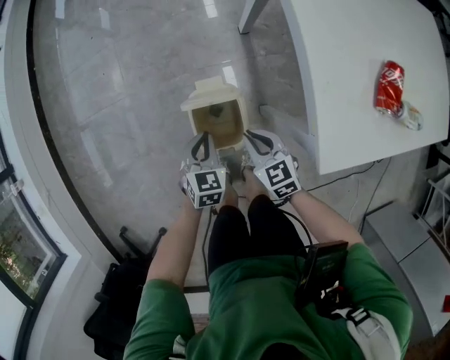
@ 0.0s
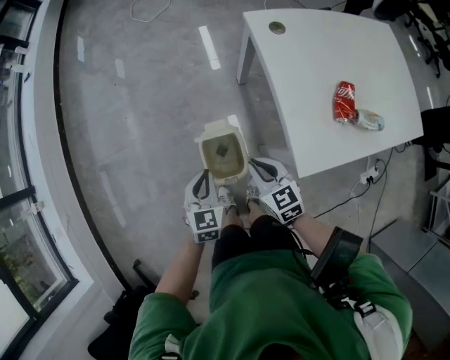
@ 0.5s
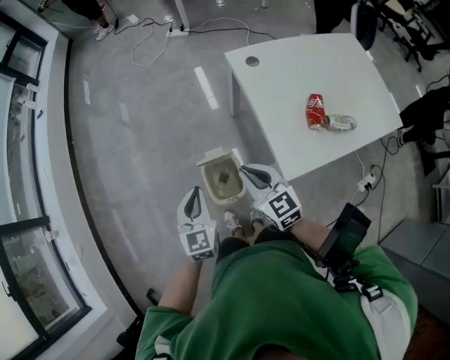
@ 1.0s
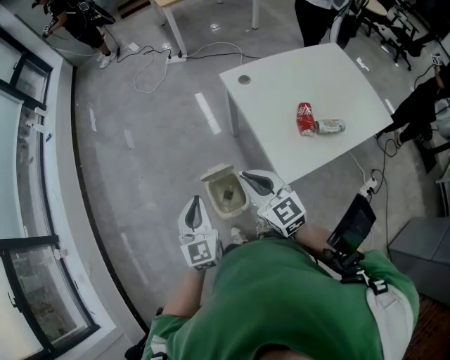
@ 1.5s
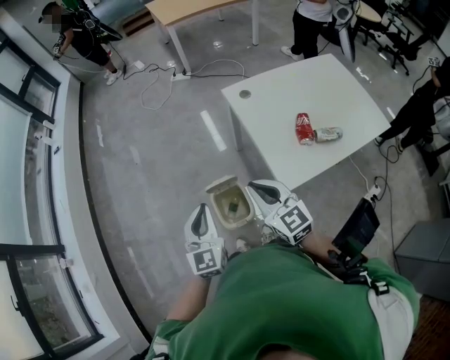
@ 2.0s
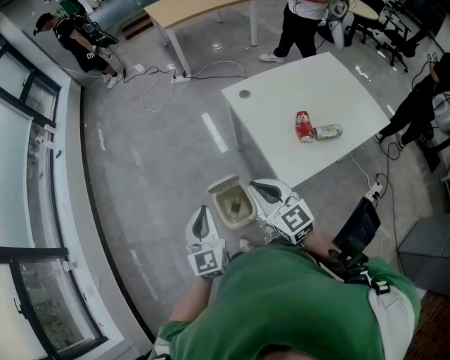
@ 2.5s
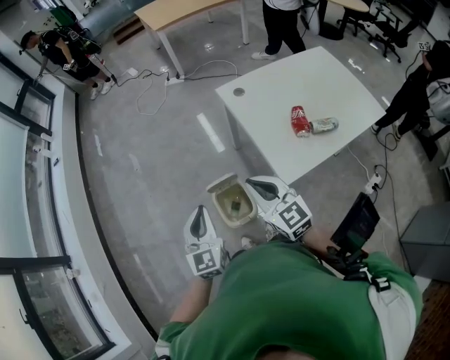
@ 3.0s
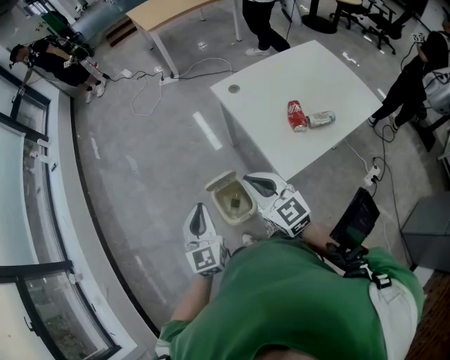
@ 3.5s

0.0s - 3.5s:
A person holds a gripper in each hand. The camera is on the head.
0.0s - 2.0s: Both grippers travel together upward, some 40 cm. The right gripper turns by approximately 30 degrees. The left gripper points its fingers some 40 degrees further upward.
2.0s - 3.5s: The grippers make only small movements.

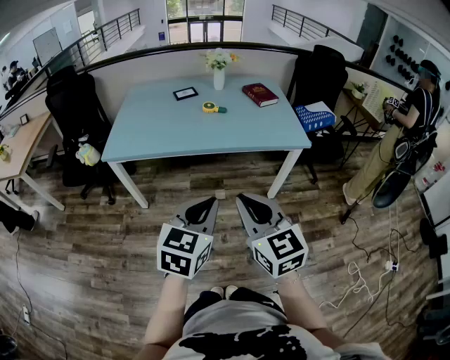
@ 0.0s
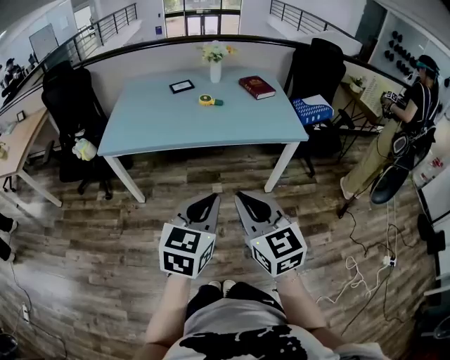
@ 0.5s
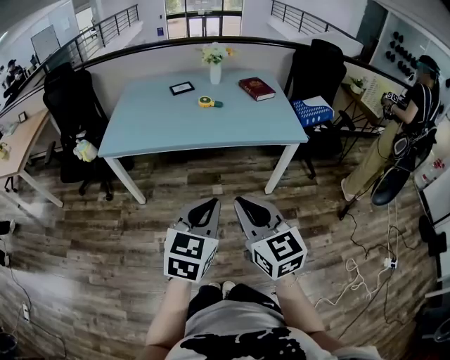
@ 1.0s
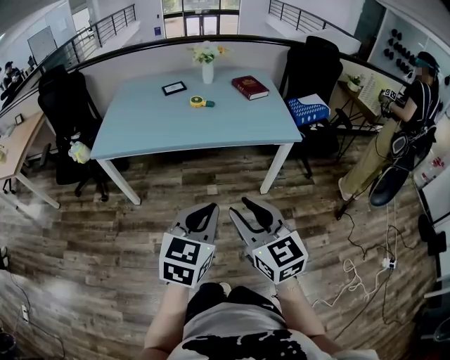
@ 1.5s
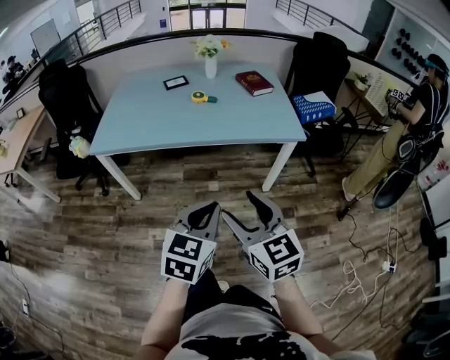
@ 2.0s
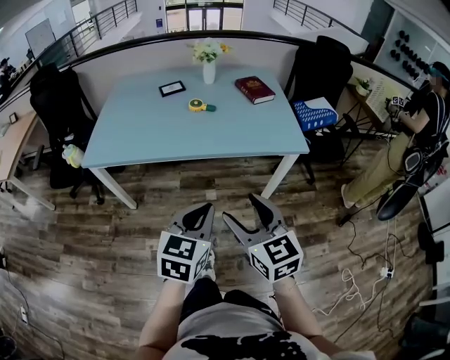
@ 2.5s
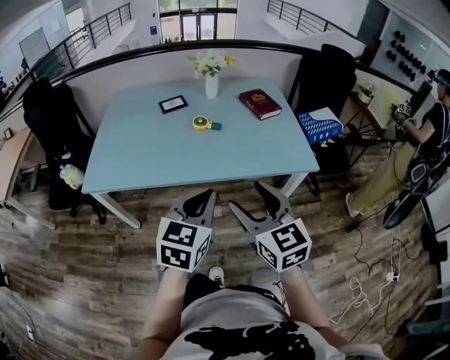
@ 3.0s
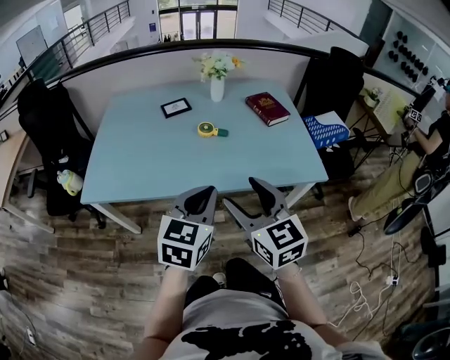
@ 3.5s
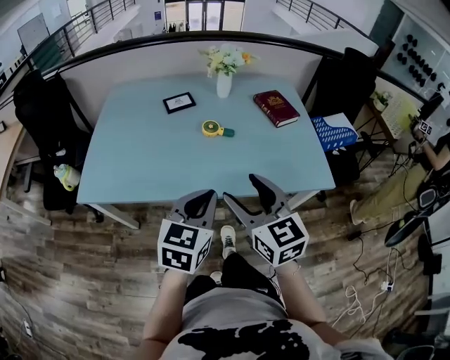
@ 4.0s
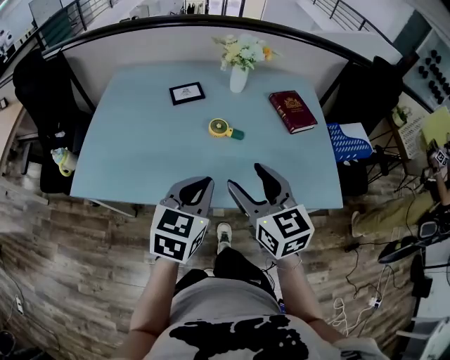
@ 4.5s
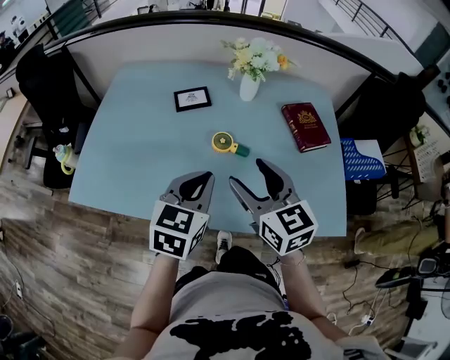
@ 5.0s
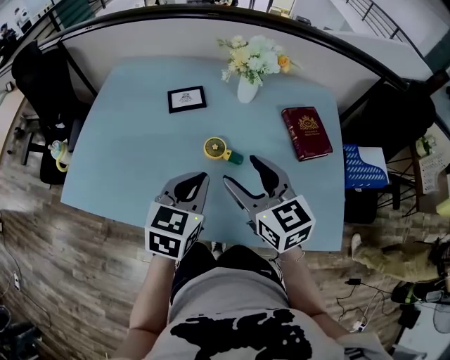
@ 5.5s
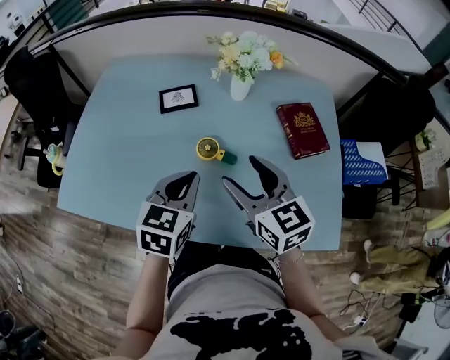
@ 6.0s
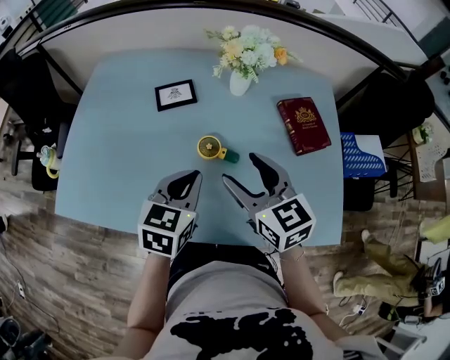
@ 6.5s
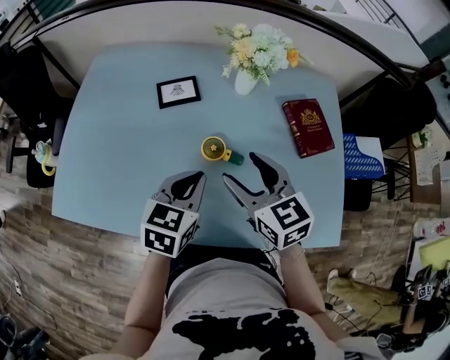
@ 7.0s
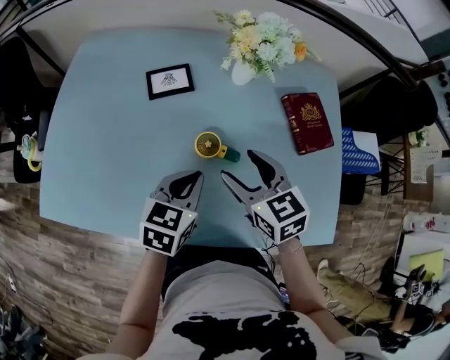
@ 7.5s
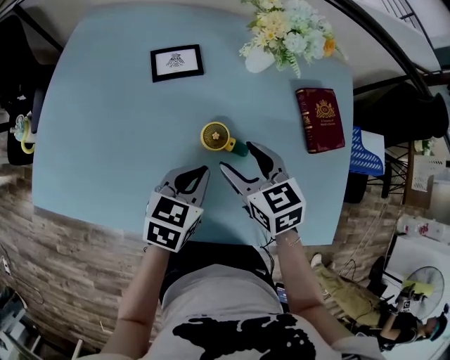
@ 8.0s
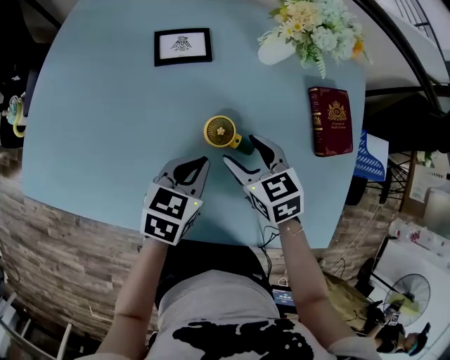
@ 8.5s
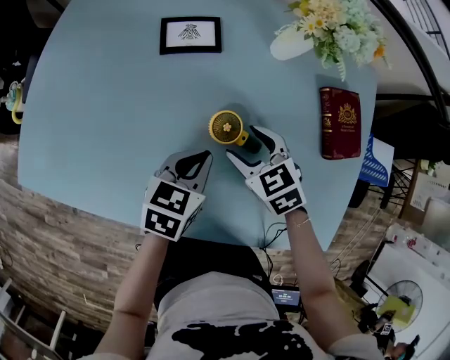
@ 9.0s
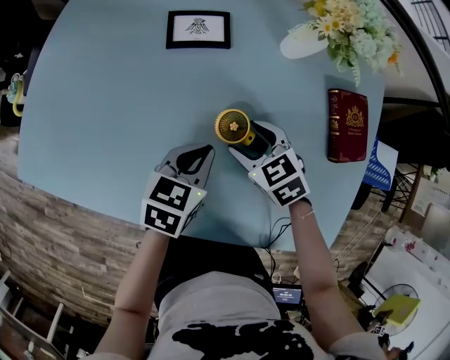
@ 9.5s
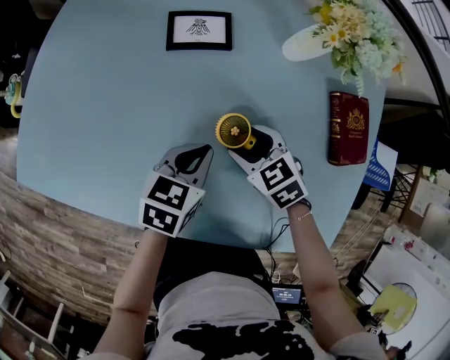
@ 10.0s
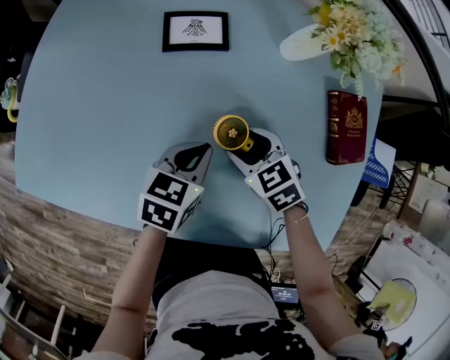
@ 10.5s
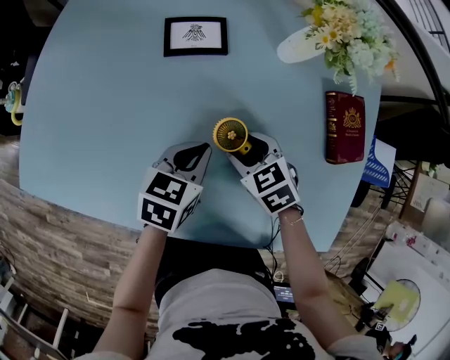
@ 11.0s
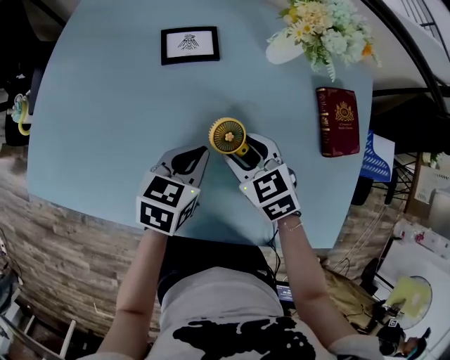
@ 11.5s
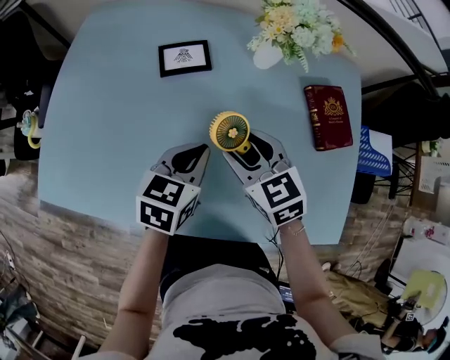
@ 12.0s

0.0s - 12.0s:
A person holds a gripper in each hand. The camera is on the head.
0.0s - 2.0s: The grippers both shift to the right by some 5 cm. The right gripper opens up.
2.0s - 4.0s: Both grippers travel together forward, some 35 cm.
4.0s - 6.0s: The grippers both shift forward by about 25 cm.
6.0s - 8.0s: The left gripper heads downward, covering approximately 10 cm. Meanwhile the right gripper is displaced downward and forward by approximately 15 cm, and changes its angle by approximately 20 degrees.
8.0s - 10.0s: The right gripper is displaced downward by some 10 cm, and rotates about 30 degrees; the left gripper shifts about 5 cm downward.
10.0s - 12.0s: The left gripper is displaced upward by roughly 10 cm. The right gripper heads upward, covering approximately 15 cm, and rotates some 30 degrees.

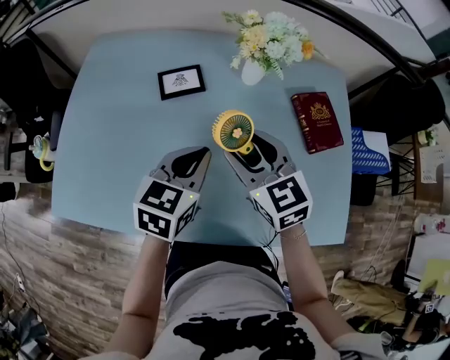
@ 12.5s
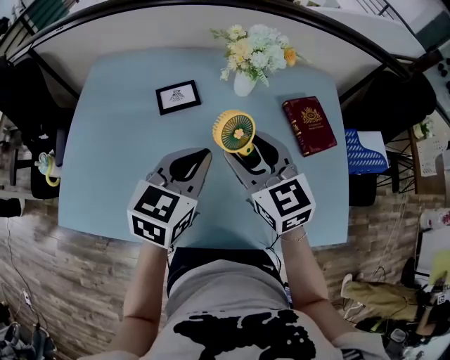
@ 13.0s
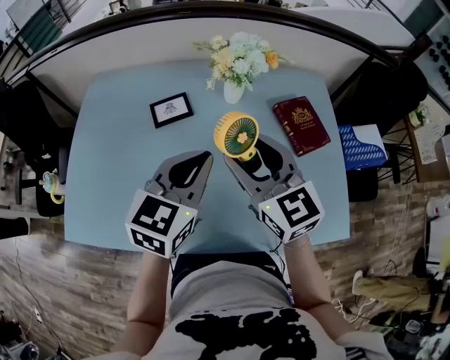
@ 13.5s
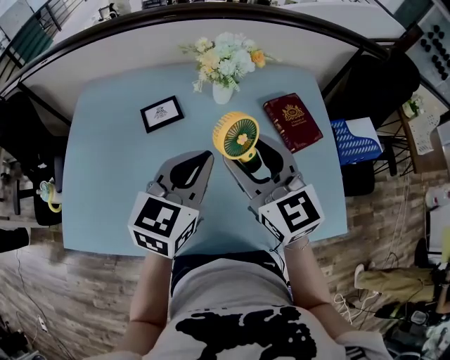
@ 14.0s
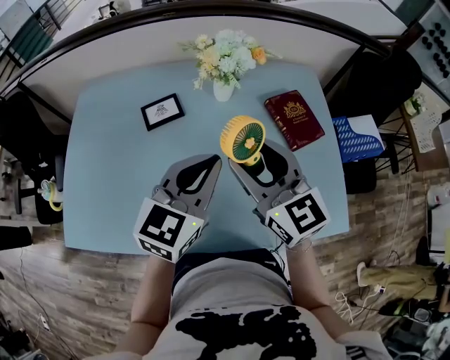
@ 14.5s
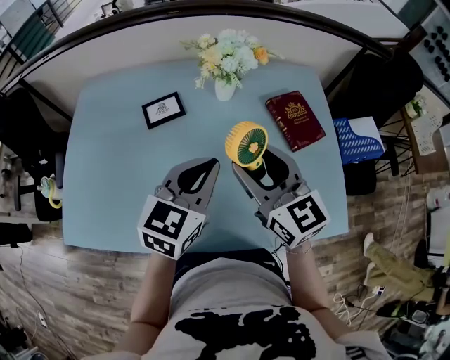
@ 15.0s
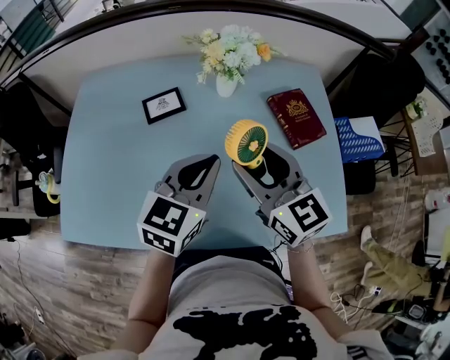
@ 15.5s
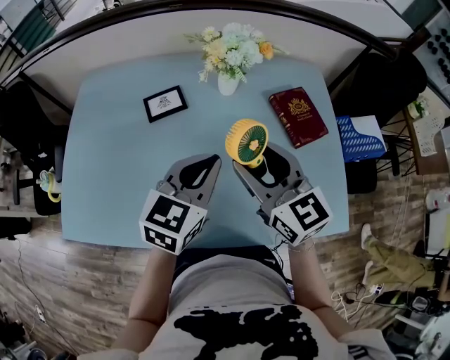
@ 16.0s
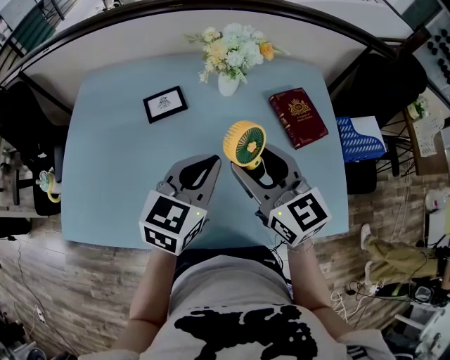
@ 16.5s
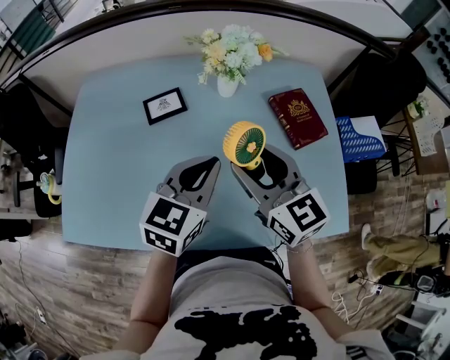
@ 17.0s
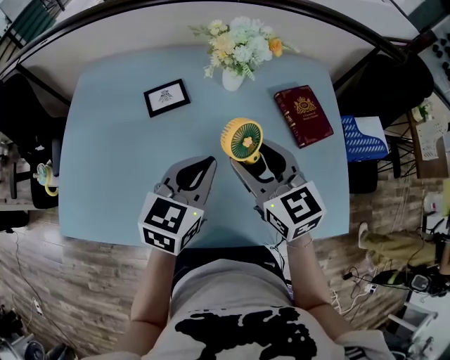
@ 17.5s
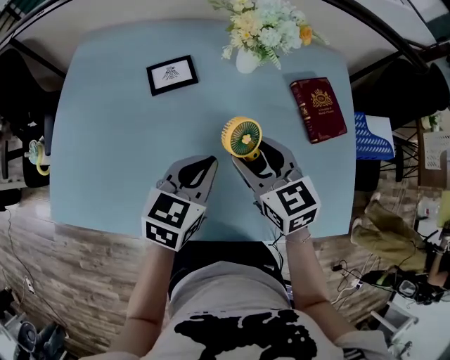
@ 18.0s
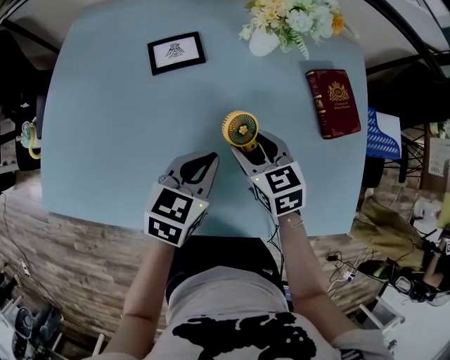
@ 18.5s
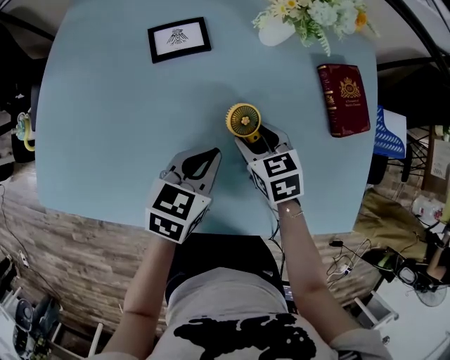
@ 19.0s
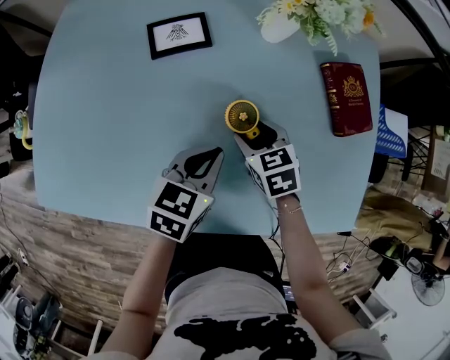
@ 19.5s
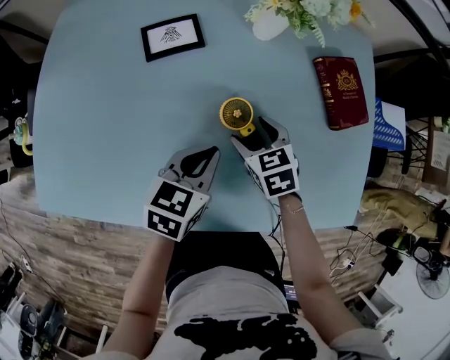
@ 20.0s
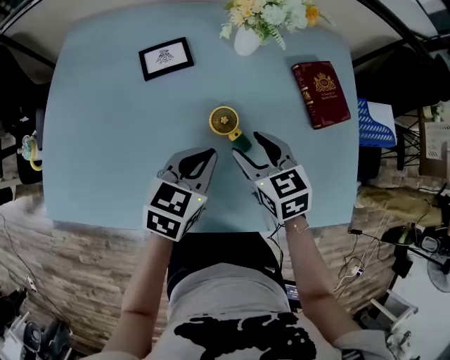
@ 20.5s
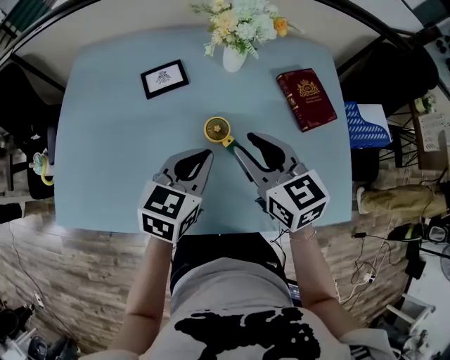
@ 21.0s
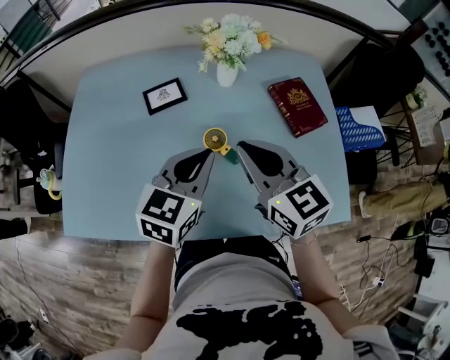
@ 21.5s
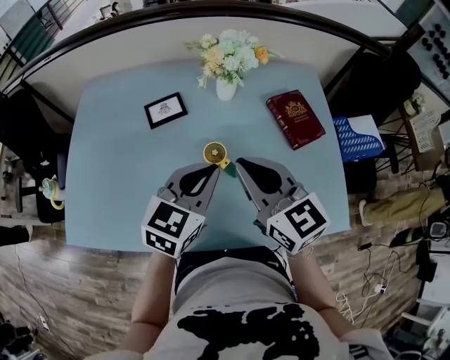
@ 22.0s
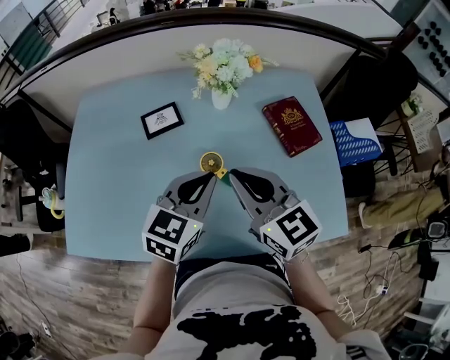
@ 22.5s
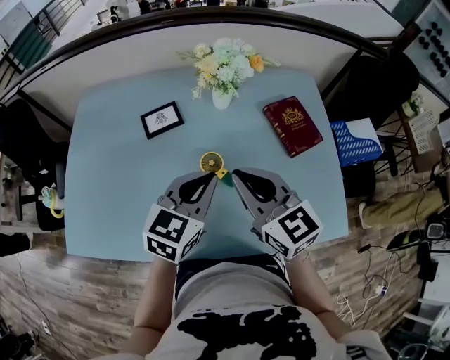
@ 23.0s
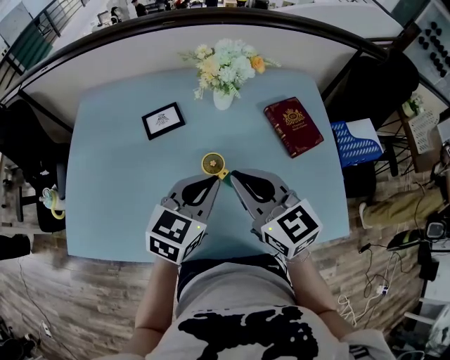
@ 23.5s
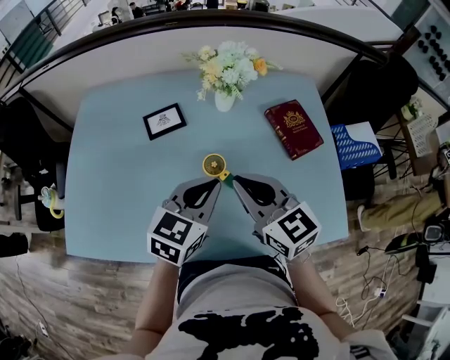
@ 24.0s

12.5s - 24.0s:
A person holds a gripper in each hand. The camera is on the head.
12.5s - 14.5s: The grippers both shift upward and to the right by about 10 cm. The right gripper turns by roughly 20 degrees. The left gripper changes its angle by some 20 degrees.
14.5s - 16.5s: The grippers stay close to where they were, moving slightly.
16.5s - 18.5s: The grippers both shift downward by approximately 20 cm. The left gripper turns by approximately 20 degrees. Meanwhile the right gripper angles its fingers downward, by approximately 30 degrees.
18.5s - 20.0s: The right gripper moves downward, approximately 5 cm.
20.0s - 22.0s: The left gripper is displaced upward by about 15 cm, and rotates some 30 degrees, while the right gripper shifts some 30 cm upward, tips its fingers upward by about 40 degrees, and closes up.
22.0s - 24.0s: The grippers move only a little.
